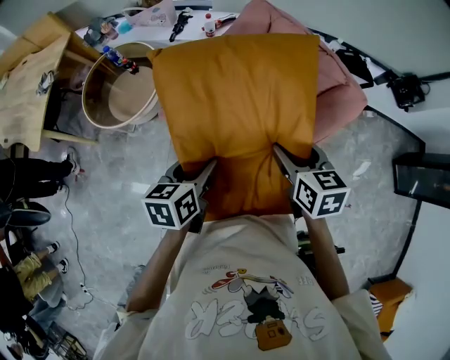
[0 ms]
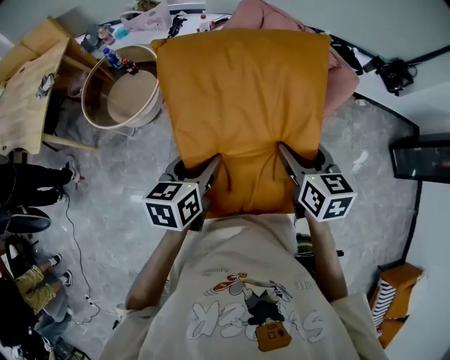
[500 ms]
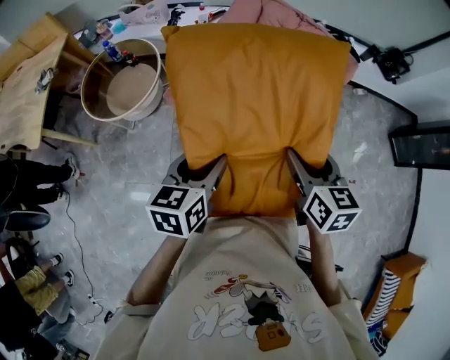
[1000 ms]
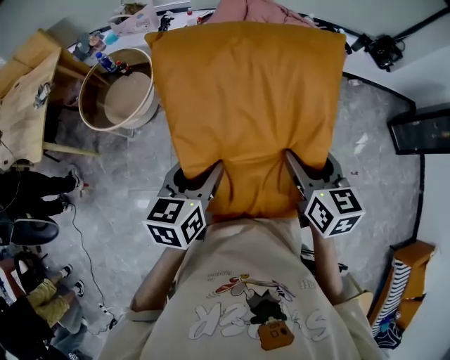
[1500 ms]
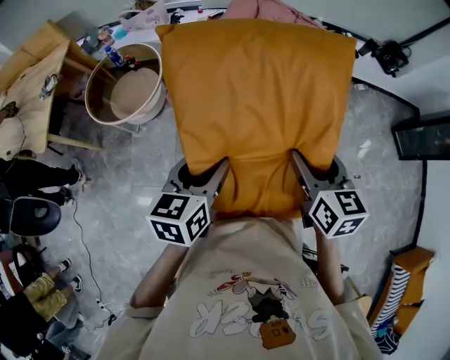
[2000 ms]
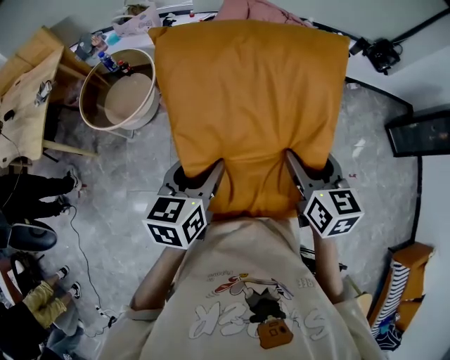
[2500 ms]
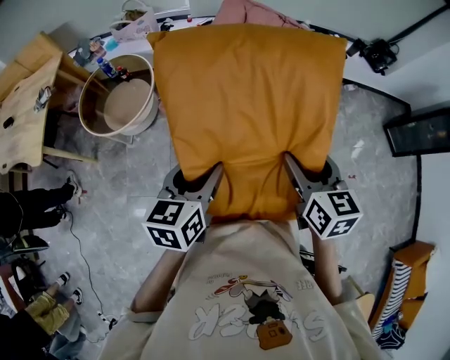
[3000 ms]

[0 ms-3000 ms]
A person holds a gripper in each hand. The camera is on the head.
0 ms to 1500 ms: The right gripper goes roughly 20 cm backward; the left gripper travels backward and upward by about 15 cm.
1500 ms to 3000 ms: The grippers make only small movements.

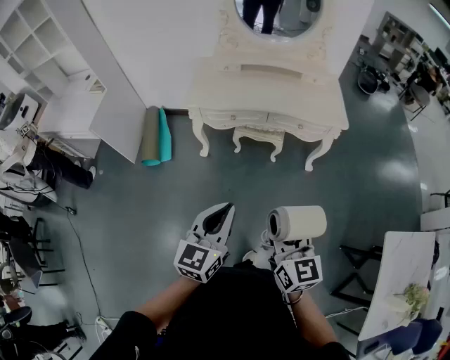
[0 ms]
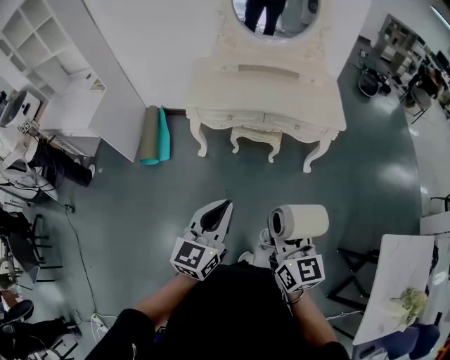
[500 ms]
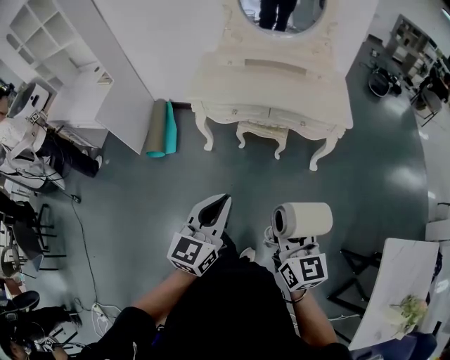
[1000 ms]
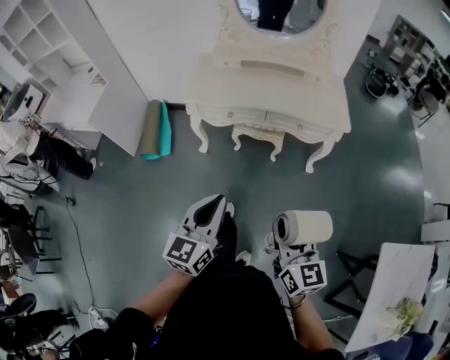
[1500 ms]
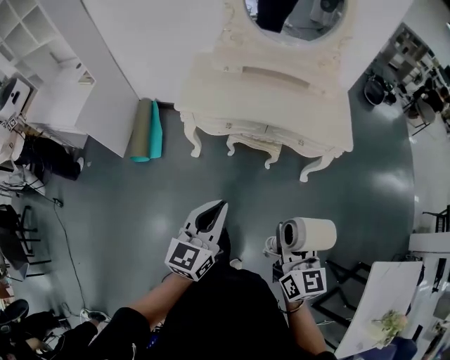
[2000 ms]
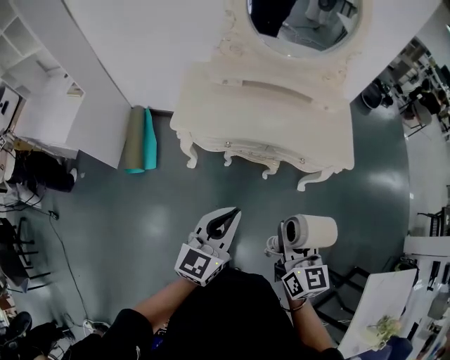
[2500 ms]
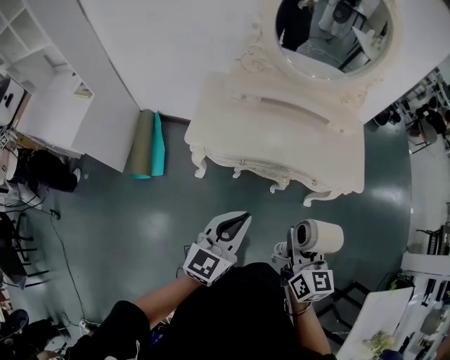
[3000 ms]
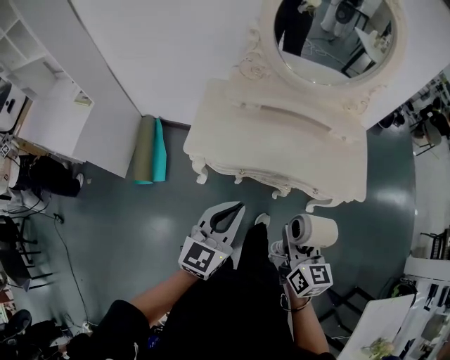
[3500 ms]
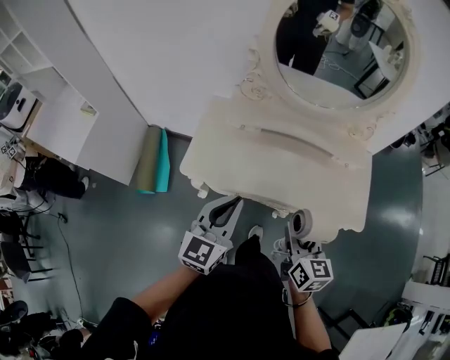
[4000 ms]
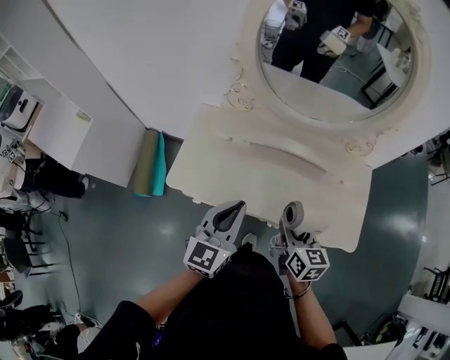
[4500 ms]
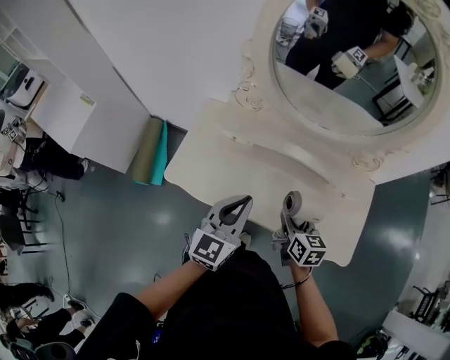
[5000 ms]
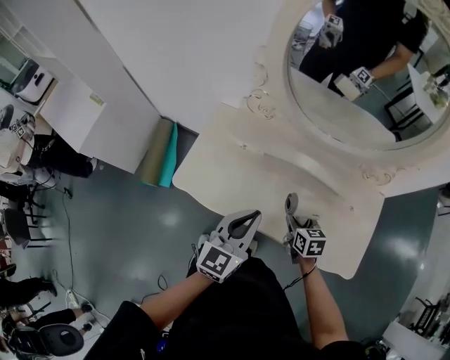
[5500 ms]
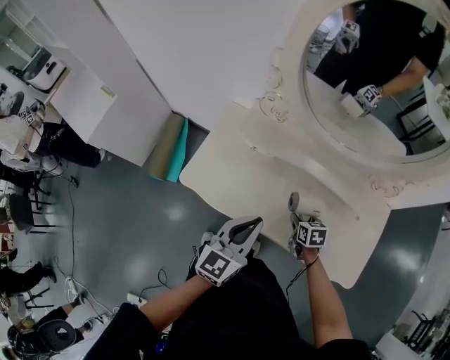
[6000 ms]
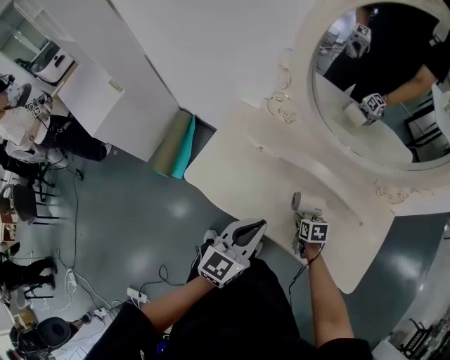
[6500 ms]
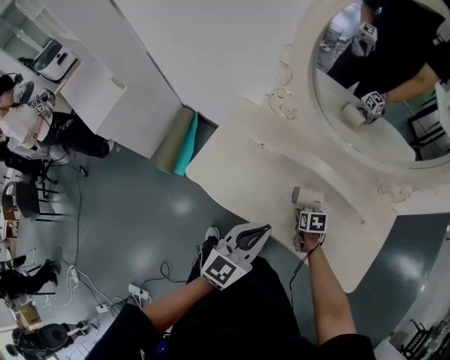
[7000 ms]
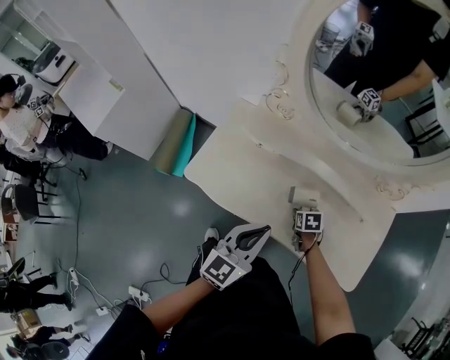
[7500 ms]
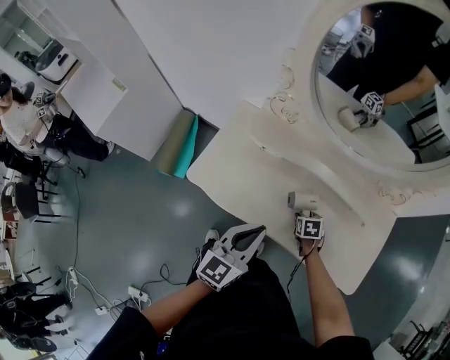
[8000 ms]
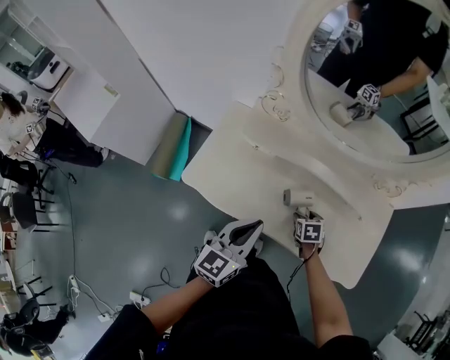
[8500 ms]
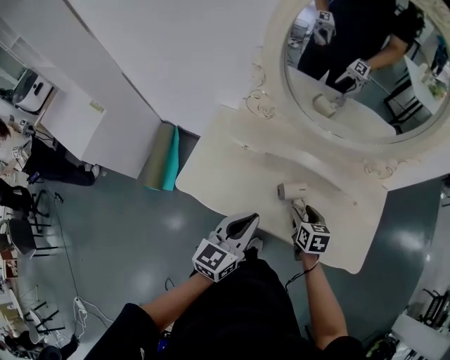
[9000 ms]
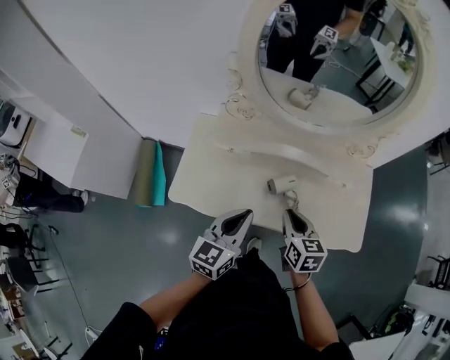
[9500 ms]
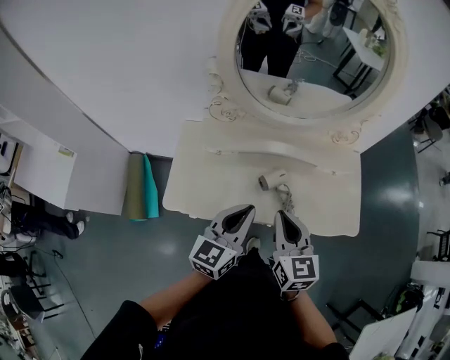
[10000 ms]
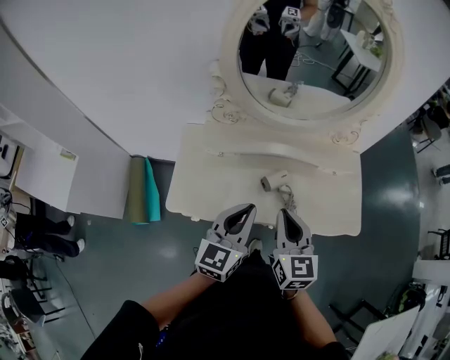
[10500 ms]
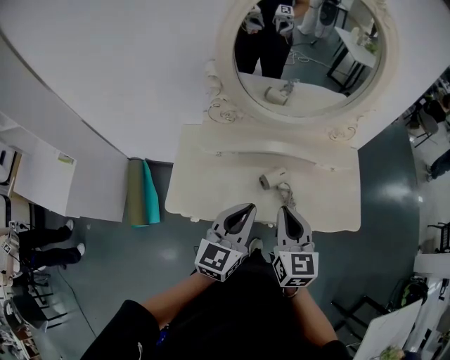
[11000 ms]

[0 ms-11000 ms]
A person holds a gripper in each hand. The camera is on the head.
0 ms to 2000 ms: The left gripper travels forward by some 15 cm. Meanwhile the right gripper moves forward and to the right, some 15 cm.
2000 ms to 3500 ms: The grippers both shift forward by some 25 cm.
3500 ms to 5500 ms: The right gripper shifts approximately 40 cm forward and downward, and rotates some 30 degrees, while the left gripper moves forward and to the right, some 25 cm.
5500 ms to 7500 ms: The right gripper travels downward by approximately 10 cm, and swivels roughly 20 degrees.
7500 ms to 9000 ms: The right gripper travels upward by approximately 15 cm, and turns by approximately 20 degrees.
9000 ms to 11000 ms: The left gripper shifts roughly 5 cm upward; the right gripper shifts some 25 cm upward and backward, turns by approximately 40 degrees, and closes its fingers.

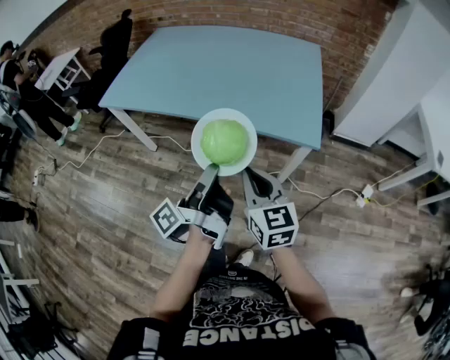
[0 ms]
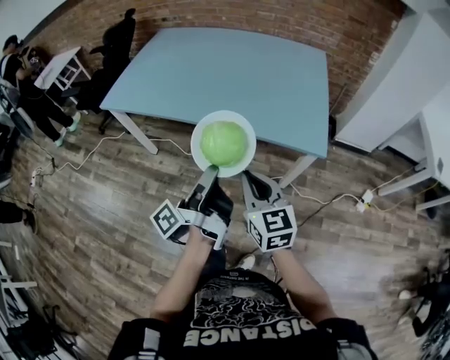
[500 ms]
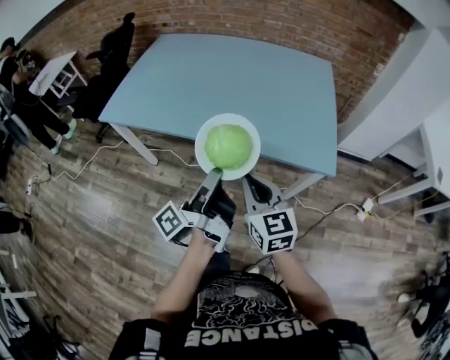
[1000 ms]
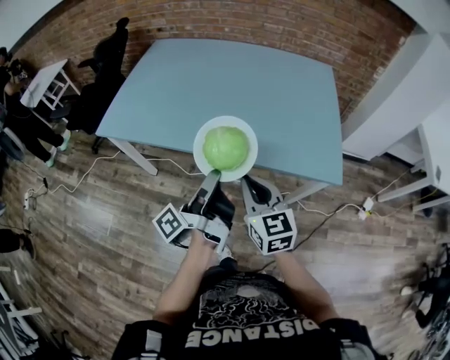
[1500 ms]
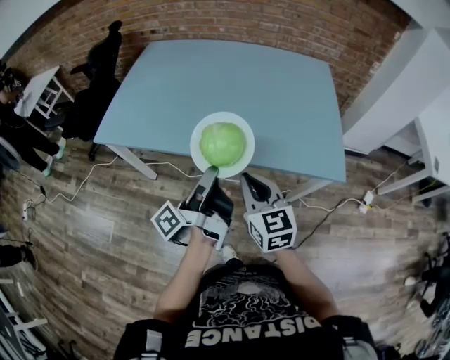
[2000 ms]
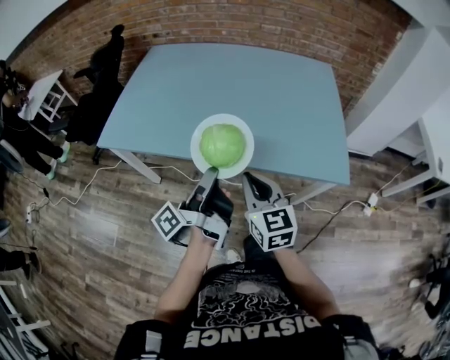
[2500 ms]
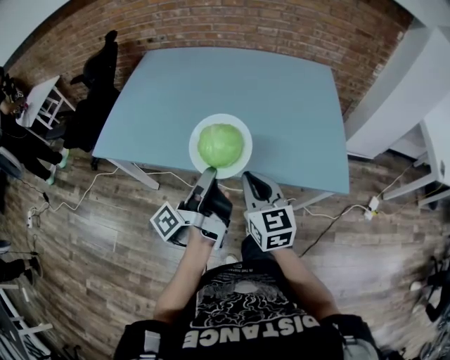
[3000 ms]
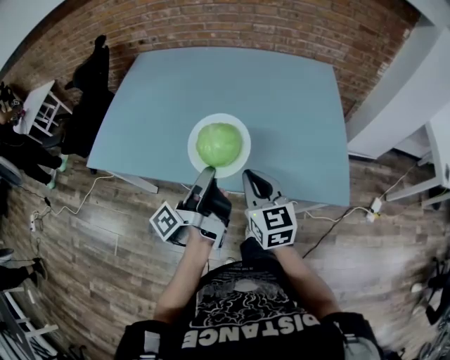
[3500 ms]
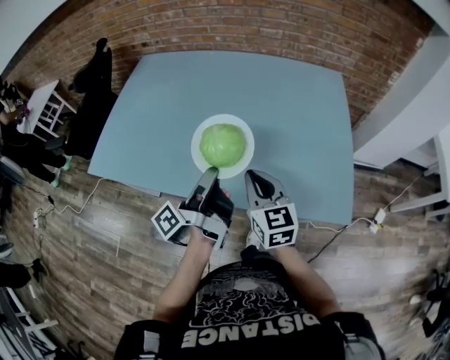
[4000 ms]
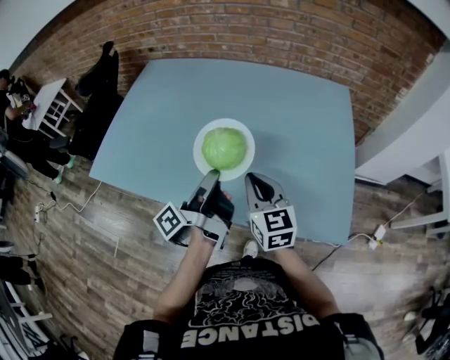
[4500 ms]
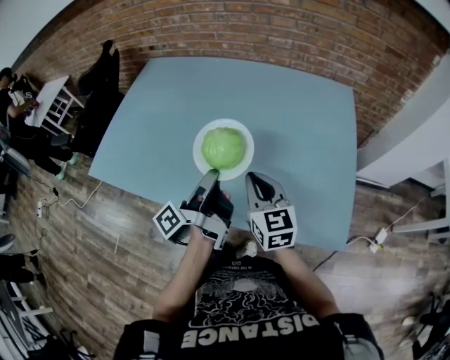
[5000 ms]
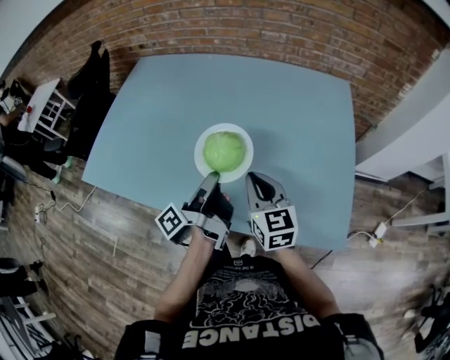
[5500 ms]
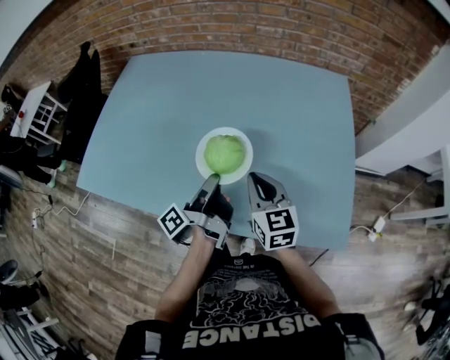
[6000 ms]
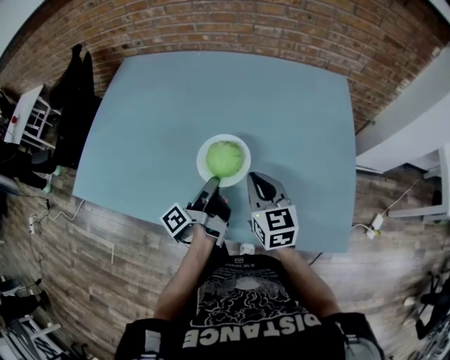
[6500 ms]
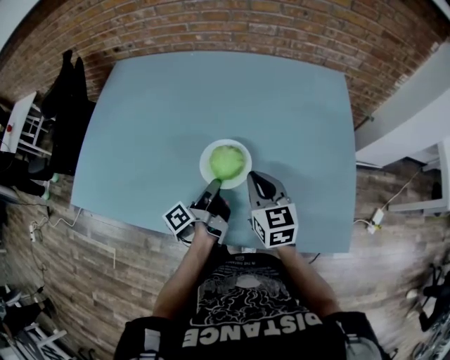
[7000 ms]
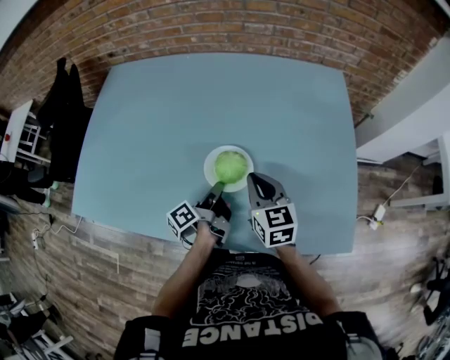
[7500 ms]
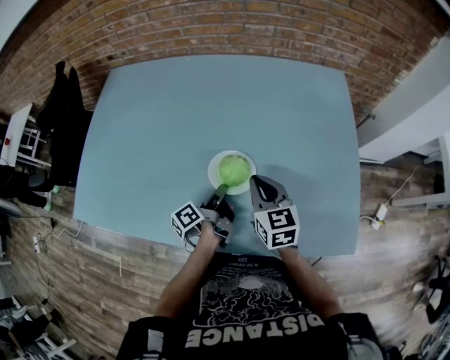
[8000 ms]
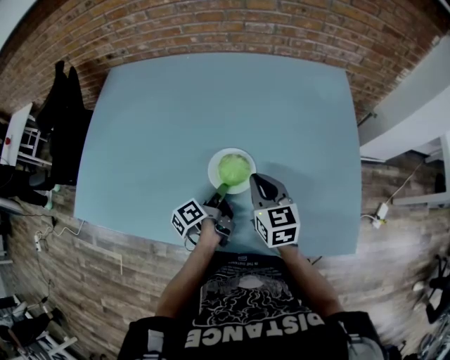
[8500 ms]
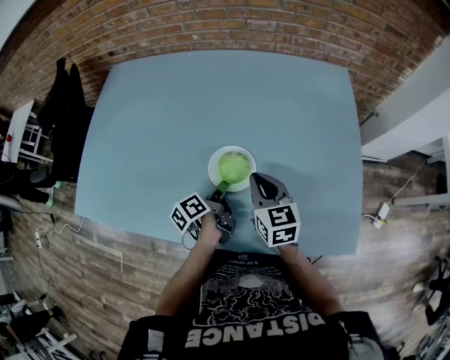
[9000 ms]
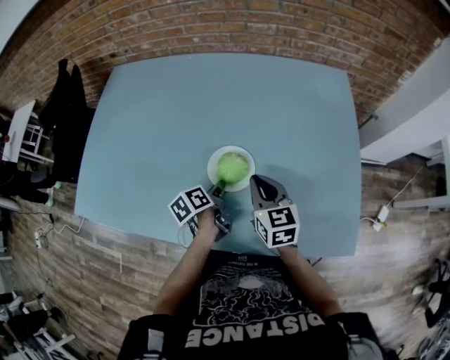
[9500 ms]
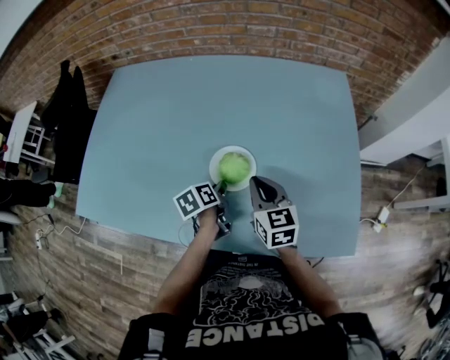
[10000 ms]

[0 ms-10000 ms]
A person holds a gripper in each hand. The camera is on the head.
0 ms to 2000 ms: The right gripper moves roughly 20 cm.
2000 ms to 4000 ms: The right gripper changes place by roughly 20 cm.
4000 ms to 6000 ms: The right gripper moves about 10 cm.
6000 ms to 8000 ms: The right gripper ends up approximately 5 cm from where it was.

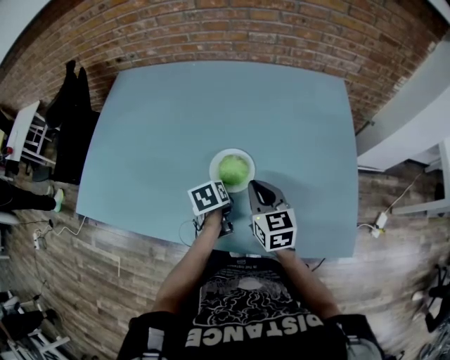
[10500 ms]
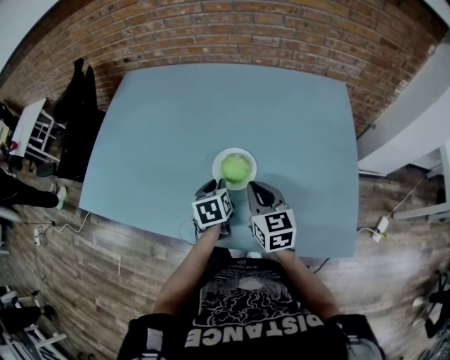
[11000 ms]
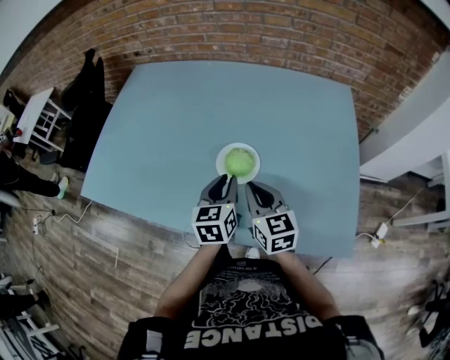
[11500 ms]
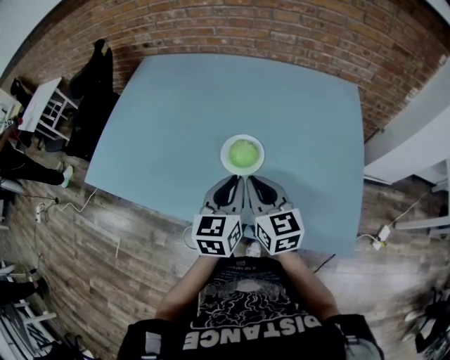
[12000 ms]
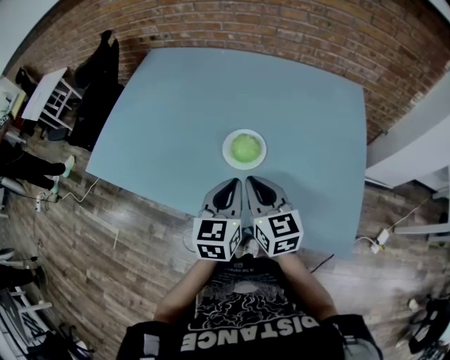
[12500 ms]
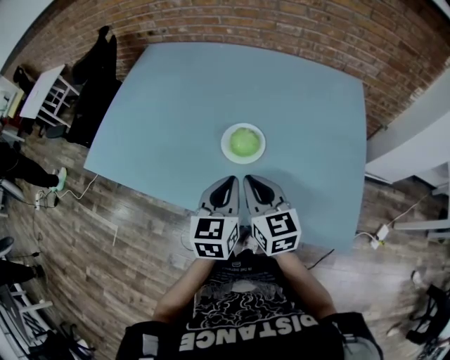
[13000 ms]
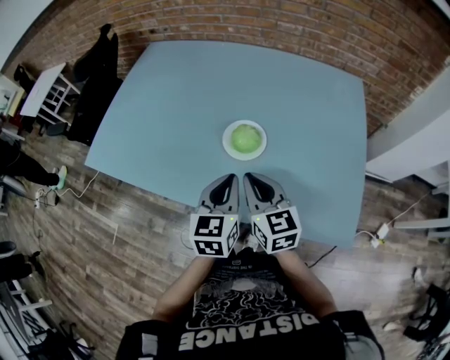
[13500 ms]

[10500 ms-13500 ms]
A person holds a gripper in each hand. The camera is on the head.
10500 ms to 12000 ms: The right gripper shifts by approximately 10 cm.
